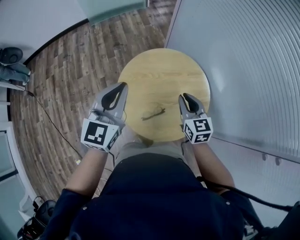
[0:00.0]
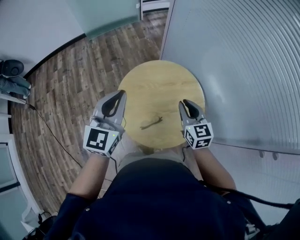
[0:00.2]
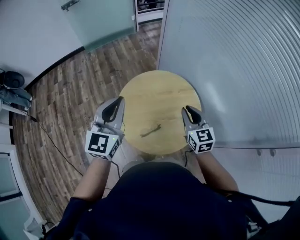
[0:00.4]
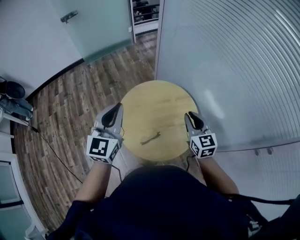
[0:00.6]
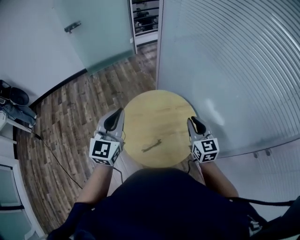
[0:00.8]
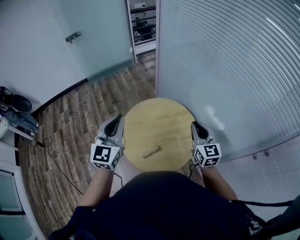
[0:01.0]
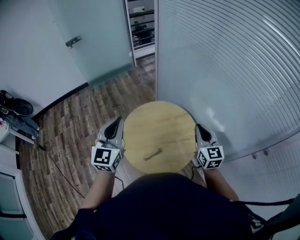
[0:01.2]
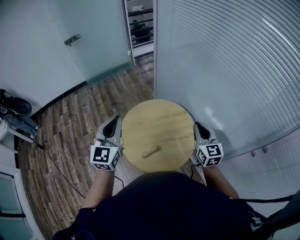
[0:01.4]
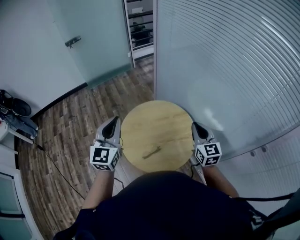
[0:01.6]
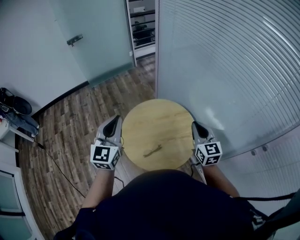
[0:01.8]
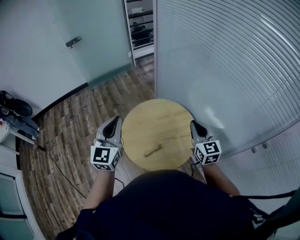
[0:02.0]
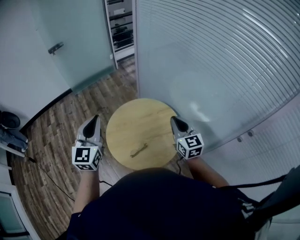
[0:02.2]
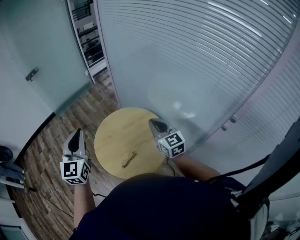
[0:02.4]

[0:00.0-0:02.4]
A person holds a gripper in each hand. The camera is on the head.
0:00.0 to 0:01.2: The left gripper heads upward, covering about 10 cm, while the right gripper heads upward and to the right, covering approximately 20 cm, and changes its angle by roughly 20 degrees.
0:01.2 to 0:02.4: There are only small adjustments of the grippers.

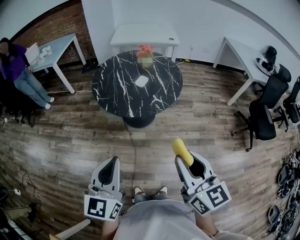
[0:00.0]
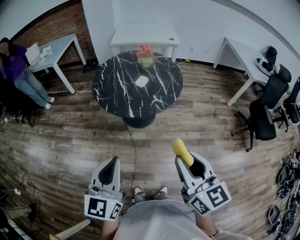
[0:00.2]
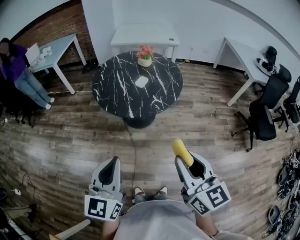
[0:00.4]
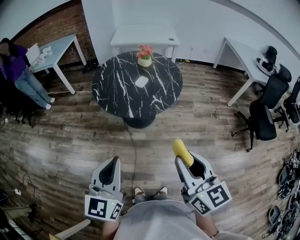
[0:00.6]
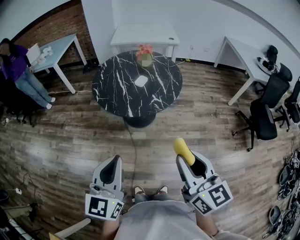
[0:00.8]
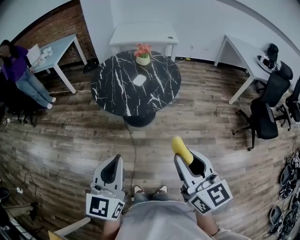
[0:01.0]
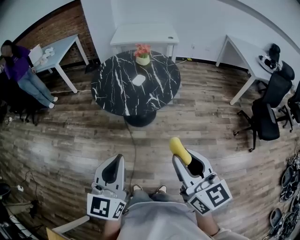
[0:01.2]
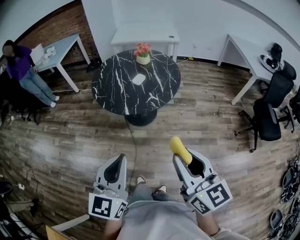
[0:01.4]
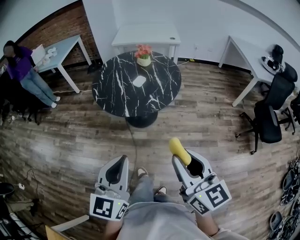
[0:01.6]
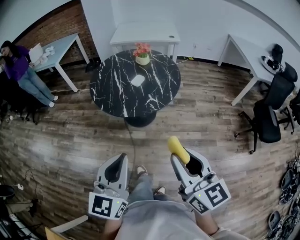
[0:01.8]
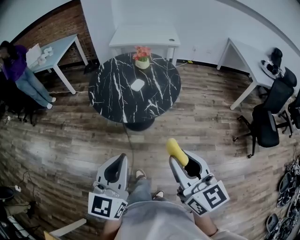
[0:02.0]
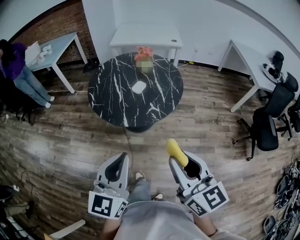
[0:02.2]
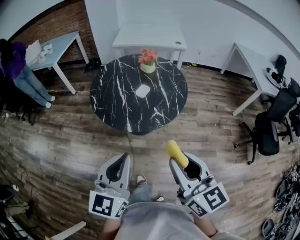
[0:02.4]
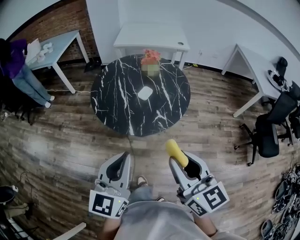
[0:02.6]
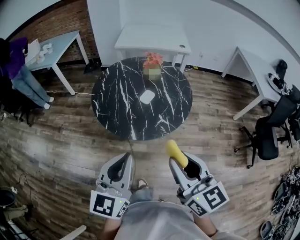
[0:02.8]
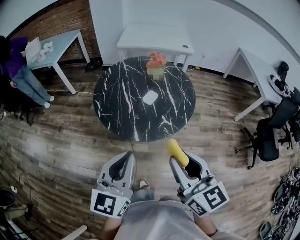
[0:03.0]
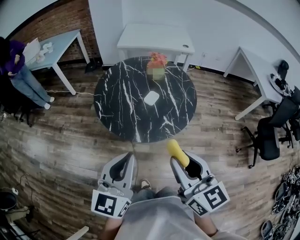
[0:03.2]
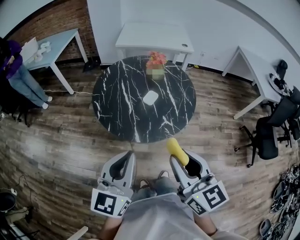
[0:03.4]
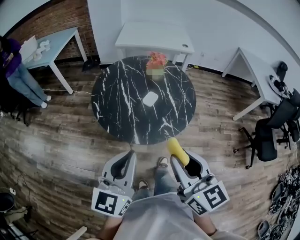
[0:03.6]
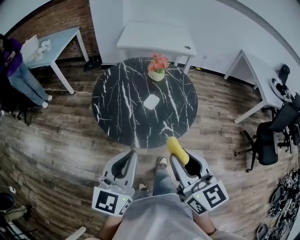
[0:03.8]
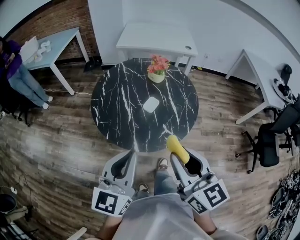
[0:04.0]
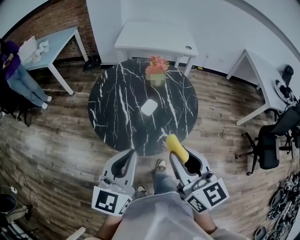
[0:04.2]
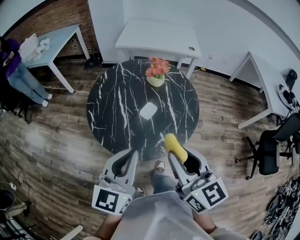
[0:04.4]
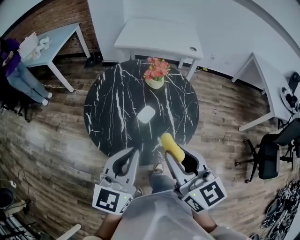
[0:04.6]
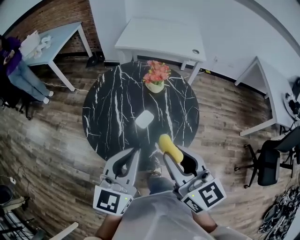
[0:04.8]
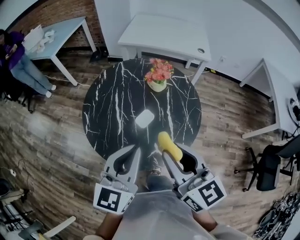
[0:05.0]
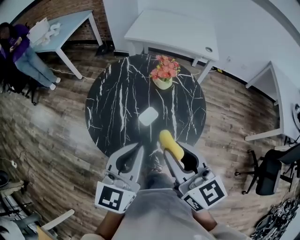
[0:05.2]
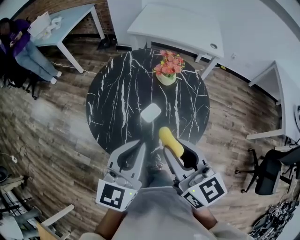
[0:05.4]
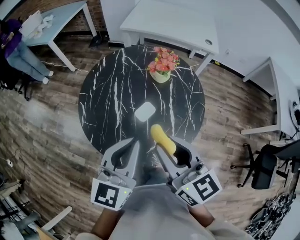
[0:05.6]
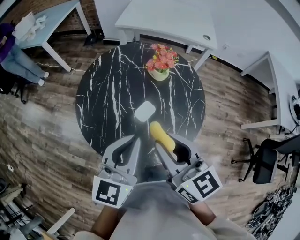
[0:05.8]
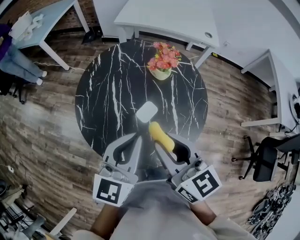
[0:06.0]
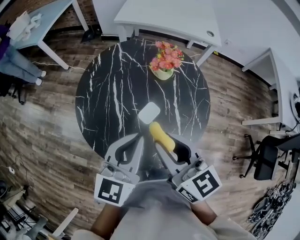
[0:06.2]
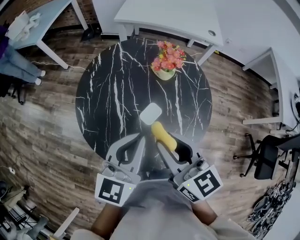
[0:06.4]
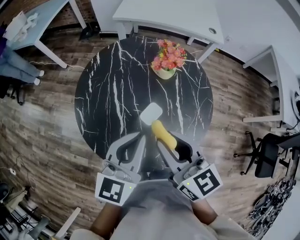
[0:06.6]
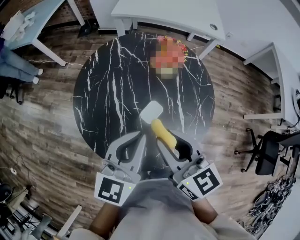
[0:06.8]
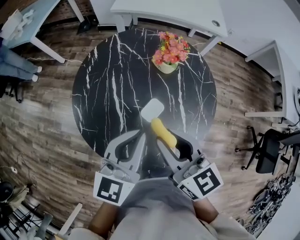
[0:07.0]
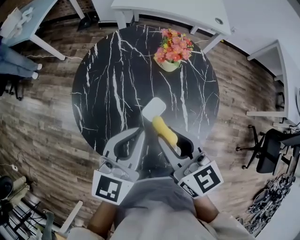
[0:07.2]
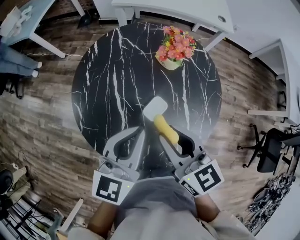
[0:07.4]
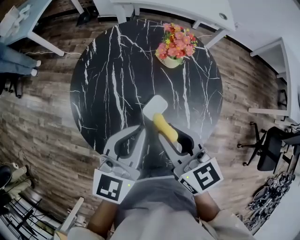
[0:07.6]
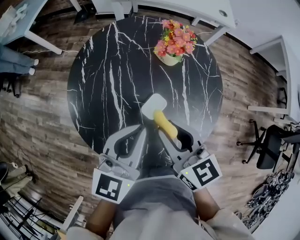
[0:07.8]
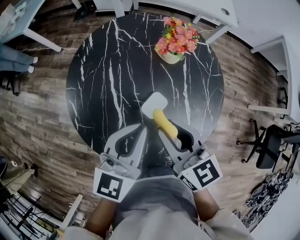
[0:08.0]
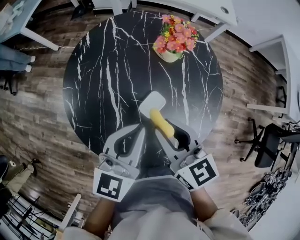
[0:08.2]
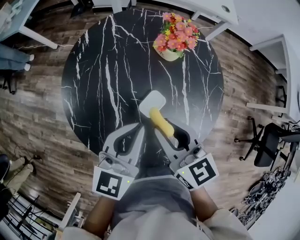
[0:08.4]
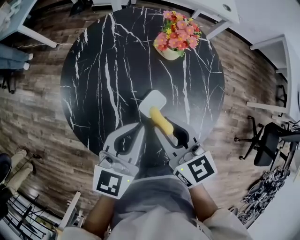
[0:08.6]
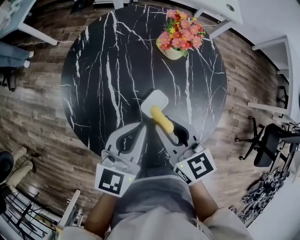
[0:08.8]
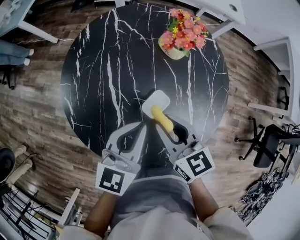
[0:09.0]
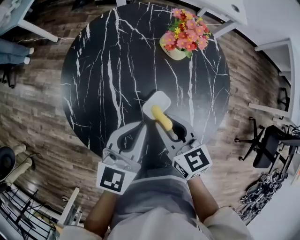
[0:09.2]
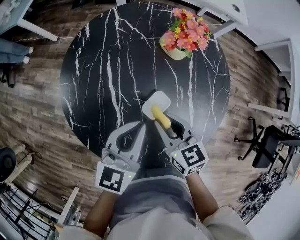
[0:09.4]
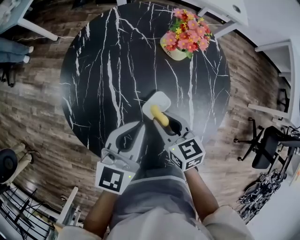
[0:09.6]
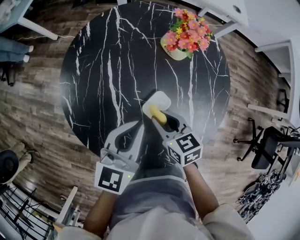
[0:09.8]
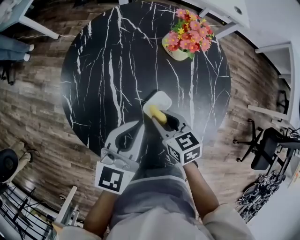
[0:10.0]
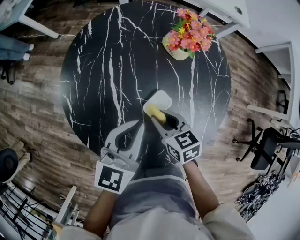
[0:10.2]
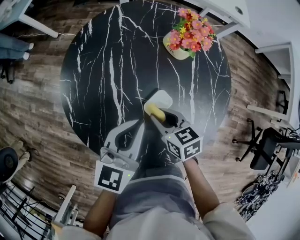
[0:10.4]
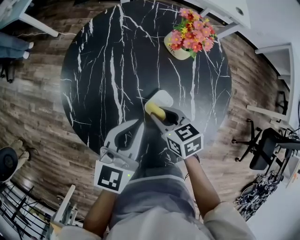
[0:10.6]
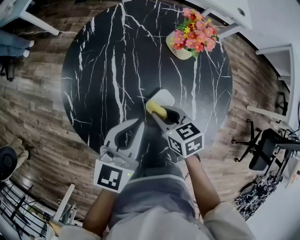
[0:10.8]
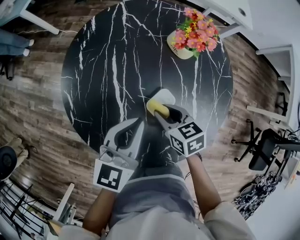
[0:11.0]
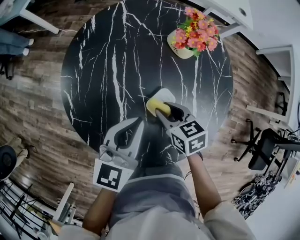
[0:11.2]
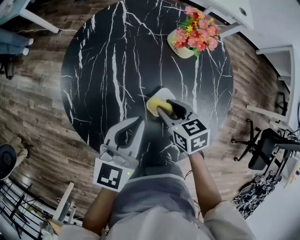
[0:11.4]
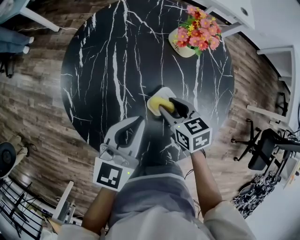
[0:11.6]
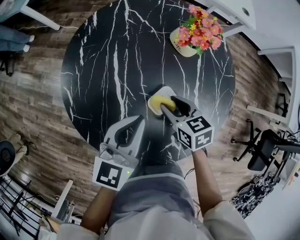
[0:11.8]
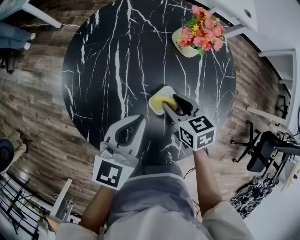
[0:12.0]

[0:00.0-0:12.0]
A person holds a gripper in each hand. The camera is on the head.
0:00.0 to 0:01.6: The right gripper travels to the right by some 5 cm. Meanwhile the left gripper goes approximately 10 cm to the right.
0:01.6 to 0:03.0: The left gripper goes about 20 cm forward, while the right gripper goes roughly 20 cm forward and to the left.
0:03.0 to 0:04.4: The grippers both shift forward by approximately 15 cm.
0:04.4 to 0:06.0: The two grippers go some 15 cm forward.
0:06.0 to 0:07.6: The right gripper goes some 10 cm downward and forward, while the left gripper travels forward and downward by approximately 10 cm.
0:07.6 to 0:09.0: Both grippers travel together downward, roughly 10 cm.
0:09.0 to 0:10.4: The right gripper heads downward, covering about 10 cm, and rotates roughly 20 degrees.
0:10.4 to 0:12.0: The grippers stay close to where they were, moving slightly.

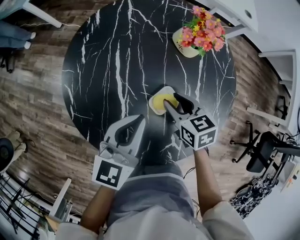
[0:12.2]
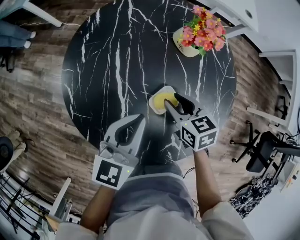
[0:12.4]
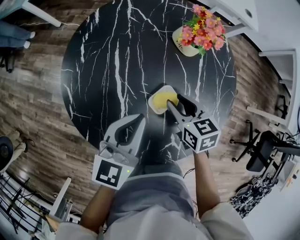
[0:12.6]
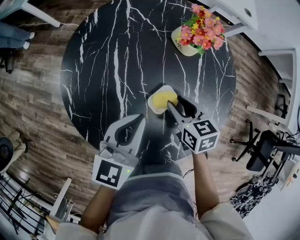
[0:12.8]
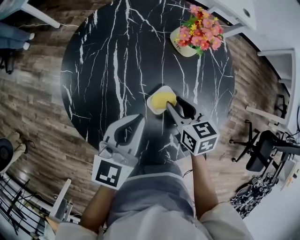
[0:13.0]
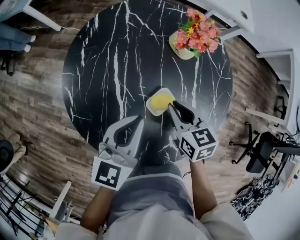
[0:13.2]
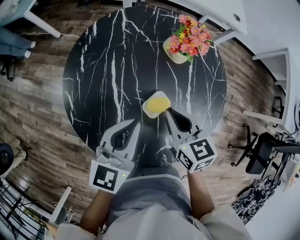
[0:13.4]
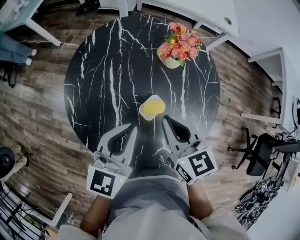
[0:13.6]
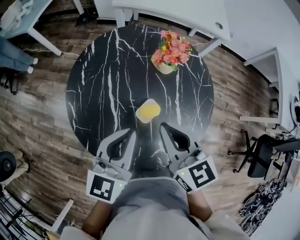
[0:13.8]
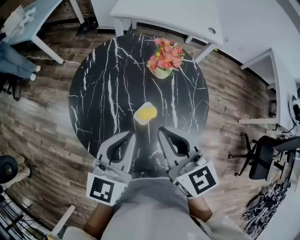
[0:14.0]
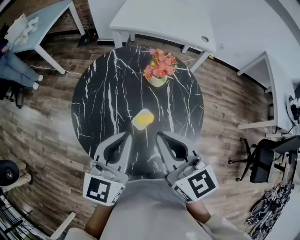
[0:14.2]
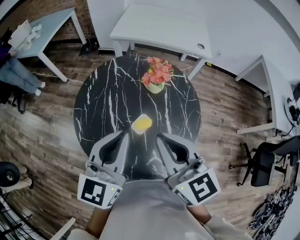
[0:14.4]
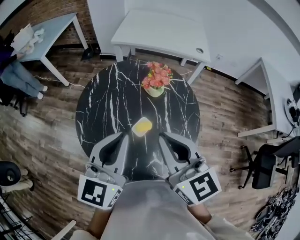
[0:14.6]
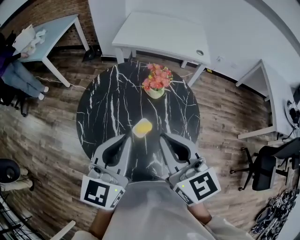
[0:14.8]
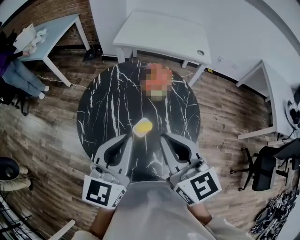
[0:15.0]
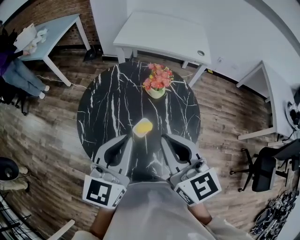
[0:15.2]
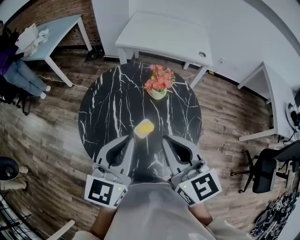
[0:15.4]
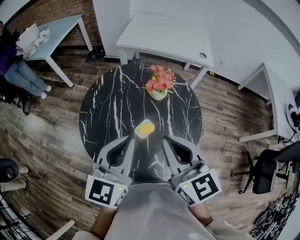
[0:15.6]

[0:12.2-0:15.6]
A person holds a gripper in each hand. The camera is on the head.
0:12.2 to 0:13.8: The right gripper moves upward, about 20 cm, swivels approximately 30 degrees, and closes; the left gripper shifts approximately 10 cm upward.
0:13.8 to 0:15.6: The left gripper travels upward by approximately 10 cm, while the right gripper is displaced upward and backward by some 15 cm.

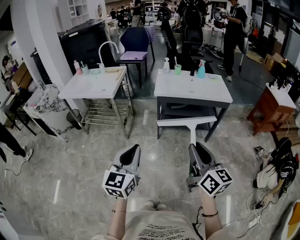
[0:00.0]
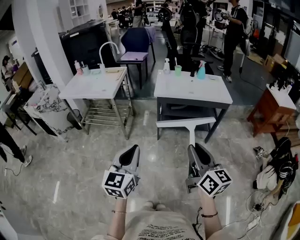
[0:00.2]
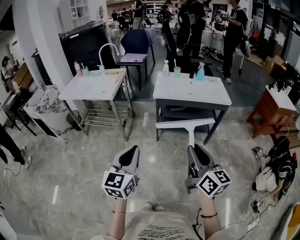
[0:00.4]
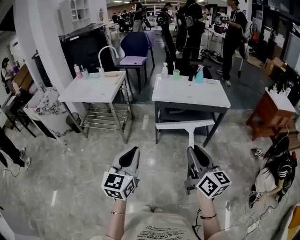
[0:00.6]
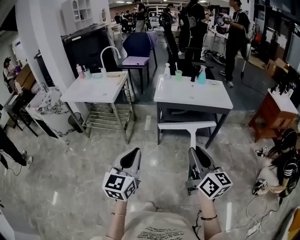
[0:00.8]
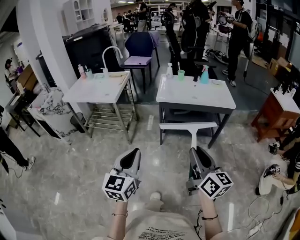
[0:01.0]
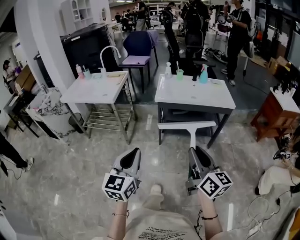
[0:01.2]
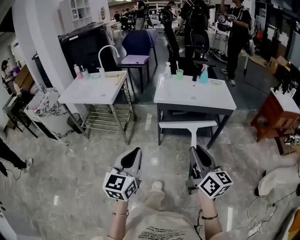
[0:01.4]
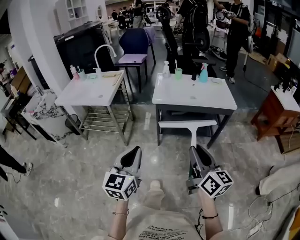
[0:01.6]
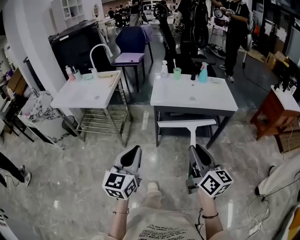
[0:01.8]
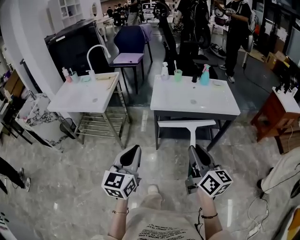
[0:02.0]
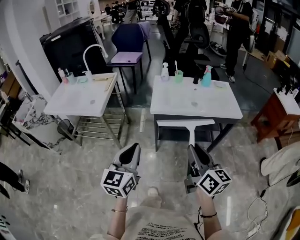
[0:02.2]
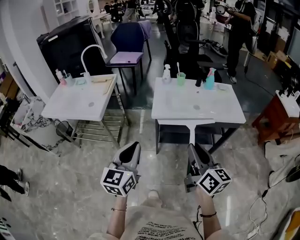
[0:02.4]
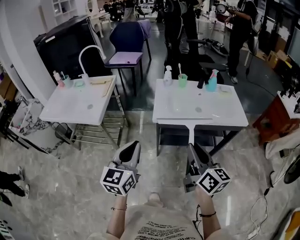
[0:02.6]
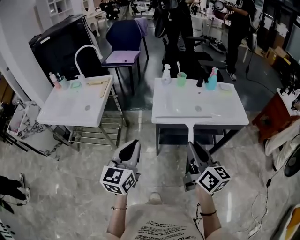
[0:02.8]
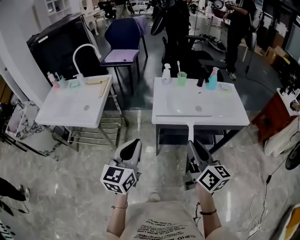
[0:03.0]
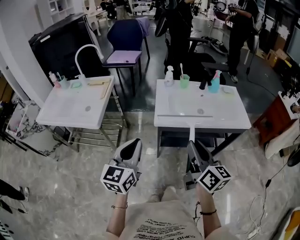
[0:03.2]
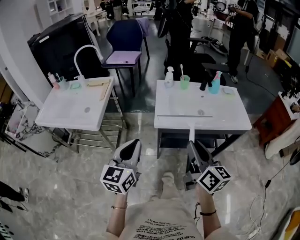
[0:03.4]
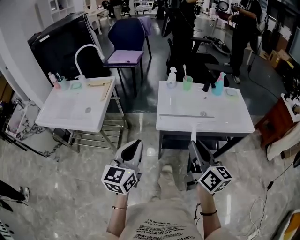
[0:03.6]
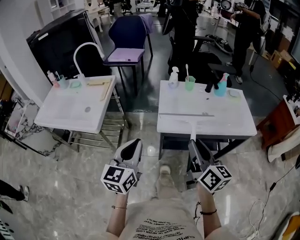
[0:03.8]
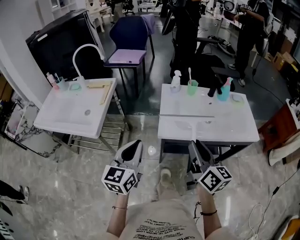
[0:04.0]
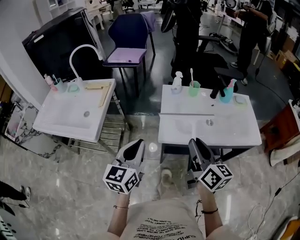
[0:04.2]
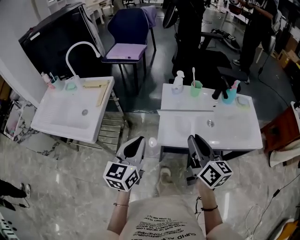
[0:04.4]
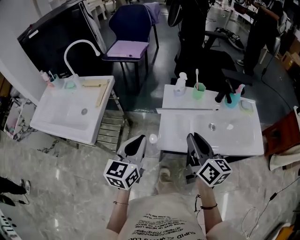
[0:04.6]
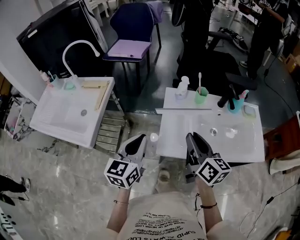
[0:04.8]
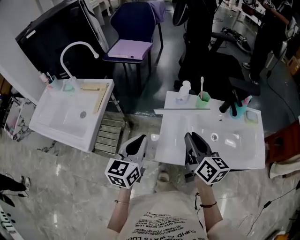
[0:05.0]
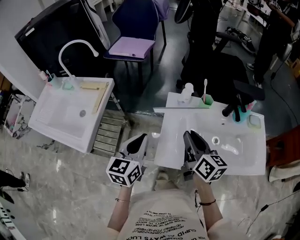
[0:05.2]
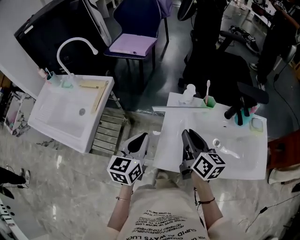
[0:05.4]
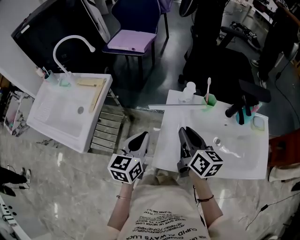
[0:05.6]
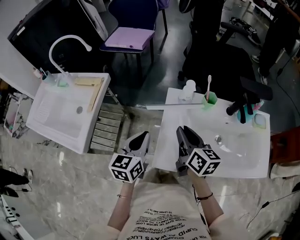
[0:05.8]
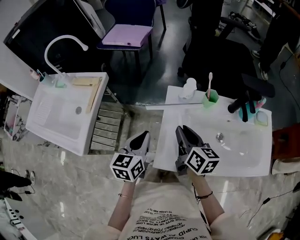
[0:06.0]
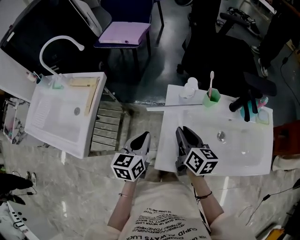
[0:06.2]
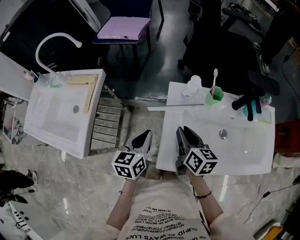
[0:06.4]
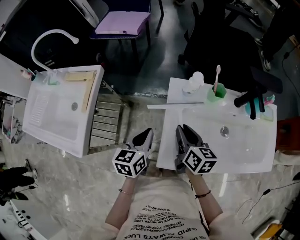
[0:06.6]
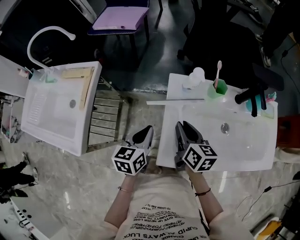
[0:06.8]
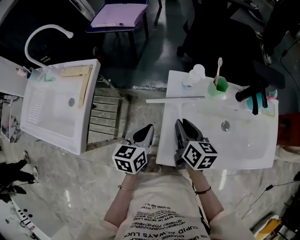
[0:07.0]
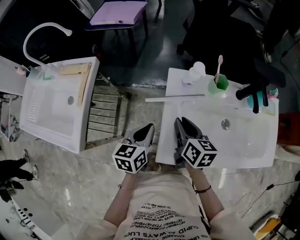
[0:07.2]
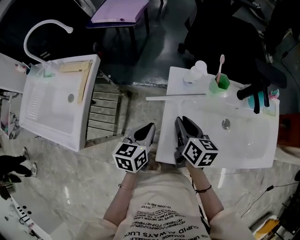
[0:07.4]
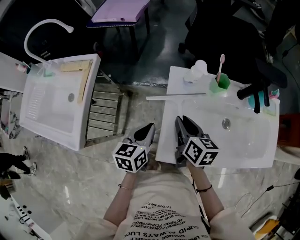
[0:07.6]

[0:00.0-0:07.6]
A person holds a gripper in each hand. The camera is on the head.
0:00.0 to 0:01.6: Both grippers move forward, some 10 cm.
0:01.6 to 0:03.0: Both grippers move forward, about 25 cm.
0:03.0 to 0:04.6: The two grippers go some 20 cm forward.
0:04.6 to 0:06.0: The two grippers go approximately 15 cm forward and downward.
0:06.0 to 0:07.6: The two grippers go about 5 cm downward.
